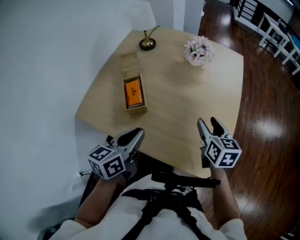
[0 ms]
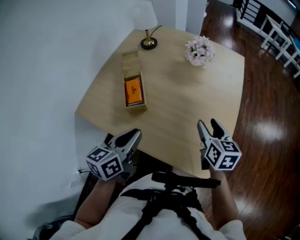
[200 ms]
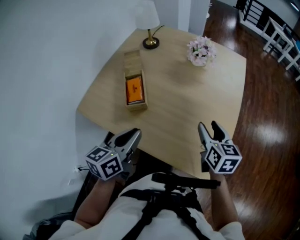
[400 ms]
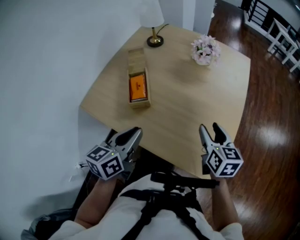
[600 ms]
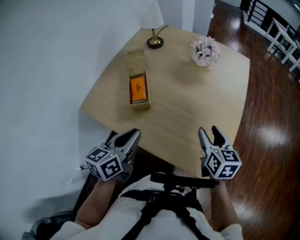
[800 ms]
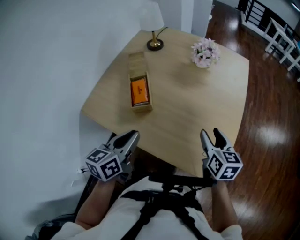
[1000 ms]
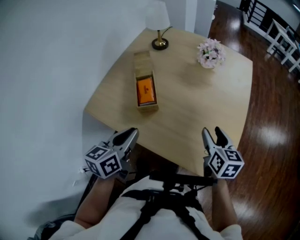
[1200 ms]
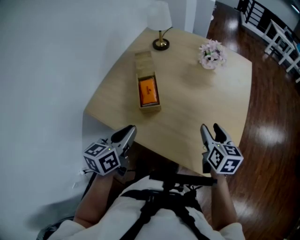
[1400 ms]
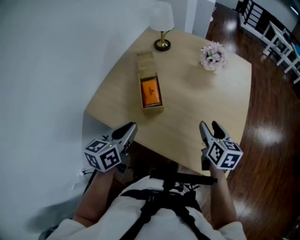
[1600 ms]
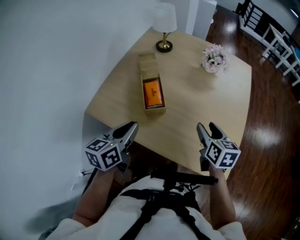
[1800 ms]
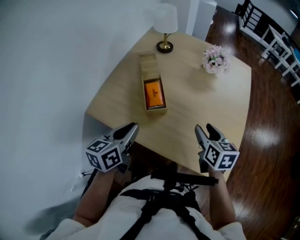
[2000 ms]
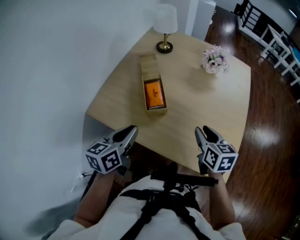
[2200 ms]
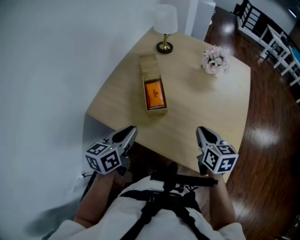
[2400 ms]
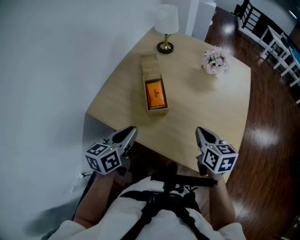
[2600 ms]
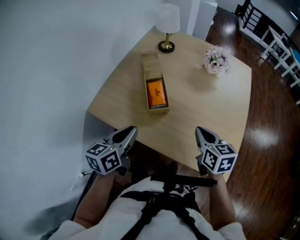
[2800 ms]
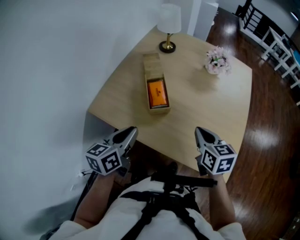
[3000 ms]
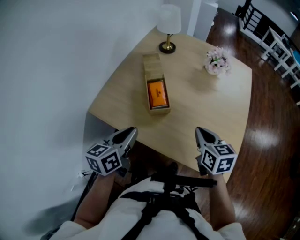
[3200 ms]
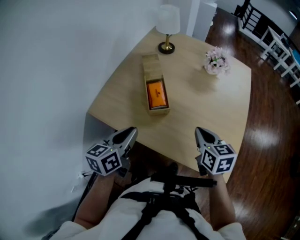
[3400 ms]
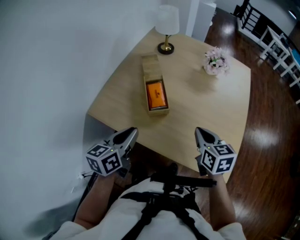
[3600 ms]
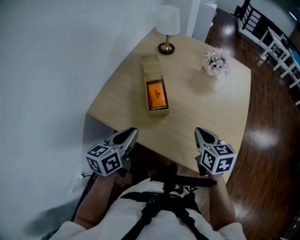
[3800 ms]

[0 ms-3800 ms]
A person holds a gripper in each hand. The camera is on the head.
0 ms to 1200 ms: The left gripper shifts some 5 cm to the left.
1200 ms to 2600 ms: Both grippers move to the left, about 10 cm. The right gripper closes.
2600 ms to 3800 ms: Both grippers stay put.

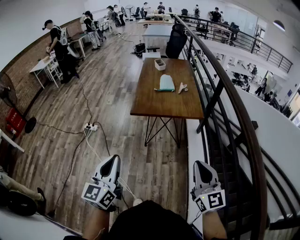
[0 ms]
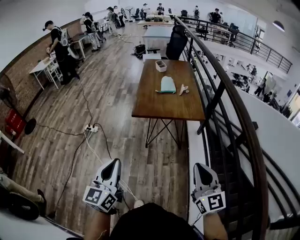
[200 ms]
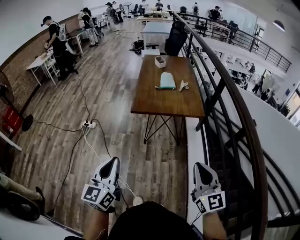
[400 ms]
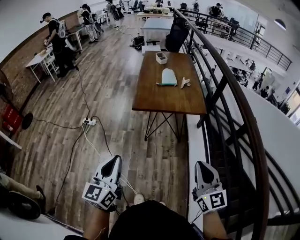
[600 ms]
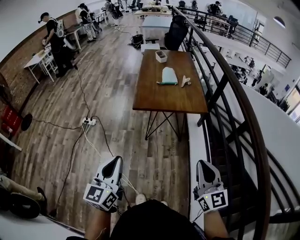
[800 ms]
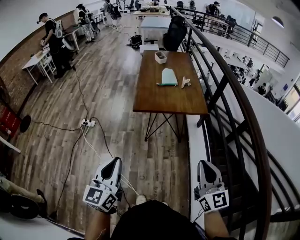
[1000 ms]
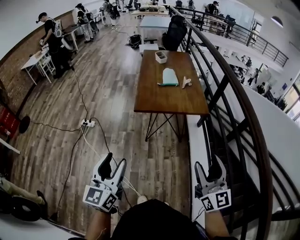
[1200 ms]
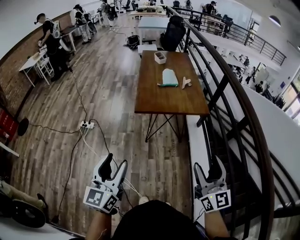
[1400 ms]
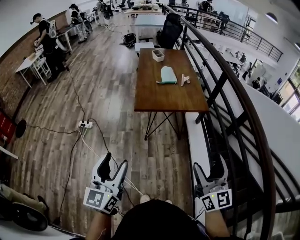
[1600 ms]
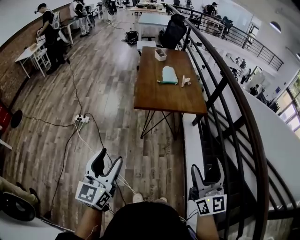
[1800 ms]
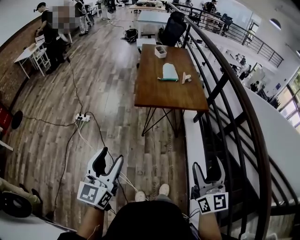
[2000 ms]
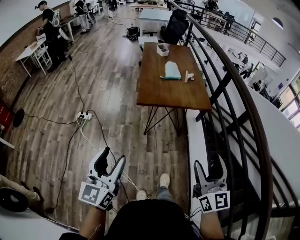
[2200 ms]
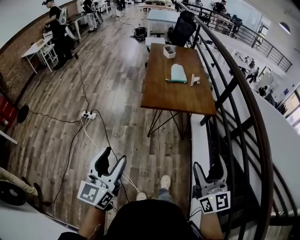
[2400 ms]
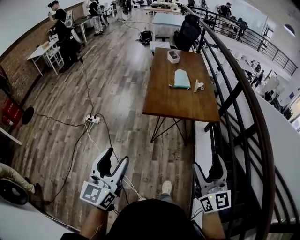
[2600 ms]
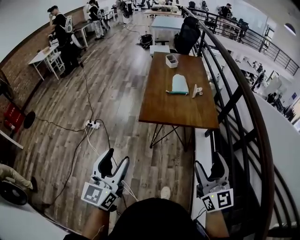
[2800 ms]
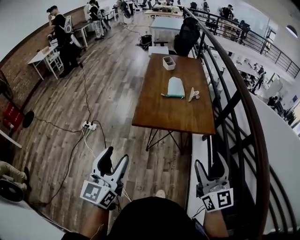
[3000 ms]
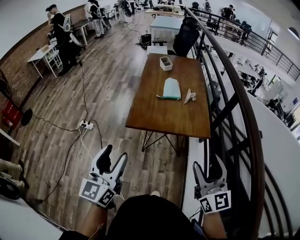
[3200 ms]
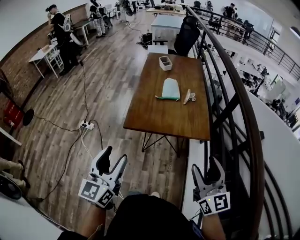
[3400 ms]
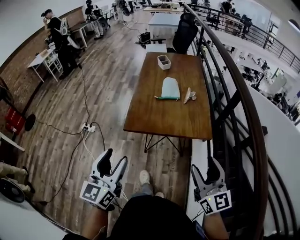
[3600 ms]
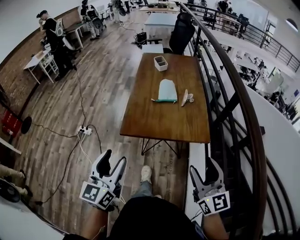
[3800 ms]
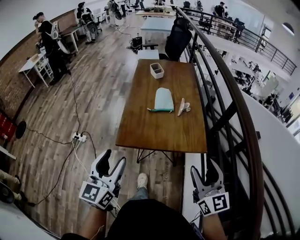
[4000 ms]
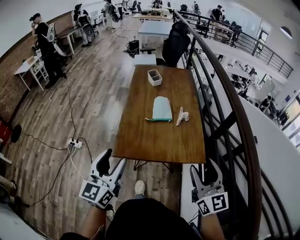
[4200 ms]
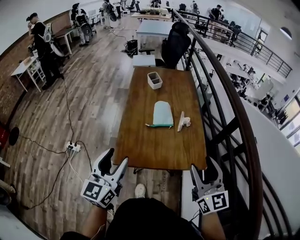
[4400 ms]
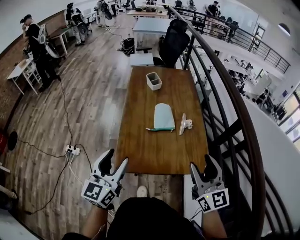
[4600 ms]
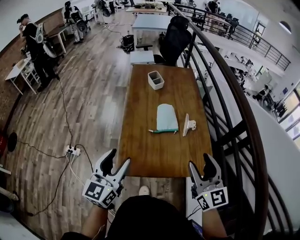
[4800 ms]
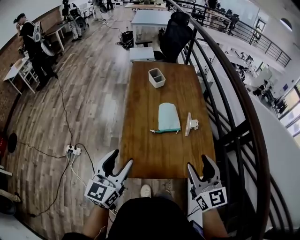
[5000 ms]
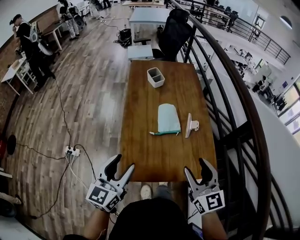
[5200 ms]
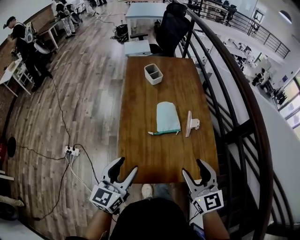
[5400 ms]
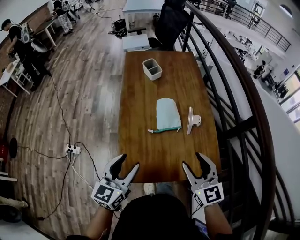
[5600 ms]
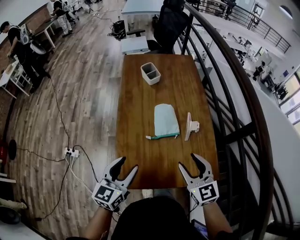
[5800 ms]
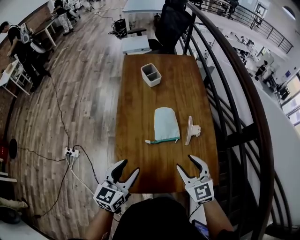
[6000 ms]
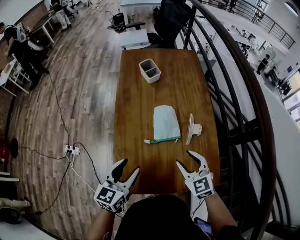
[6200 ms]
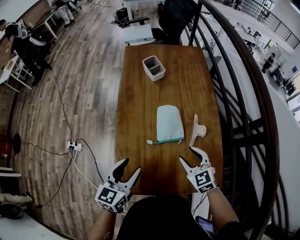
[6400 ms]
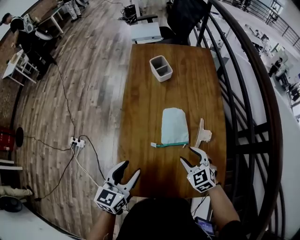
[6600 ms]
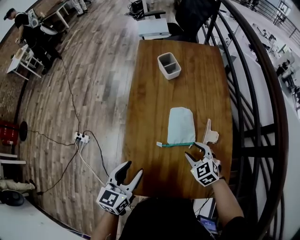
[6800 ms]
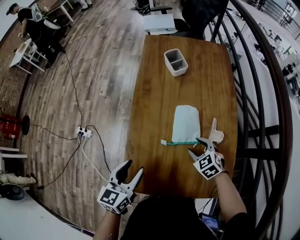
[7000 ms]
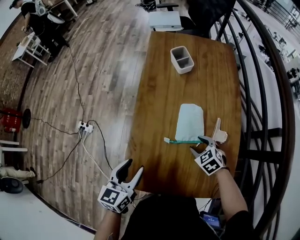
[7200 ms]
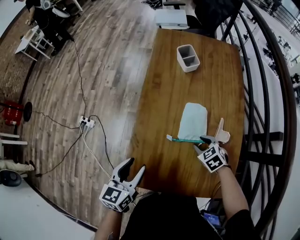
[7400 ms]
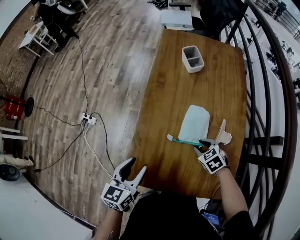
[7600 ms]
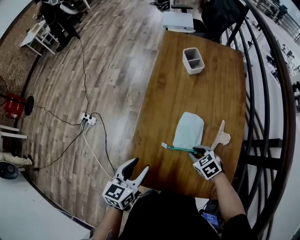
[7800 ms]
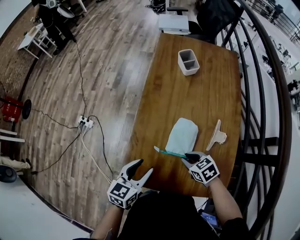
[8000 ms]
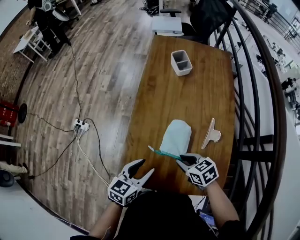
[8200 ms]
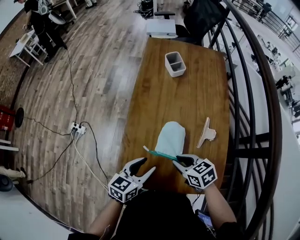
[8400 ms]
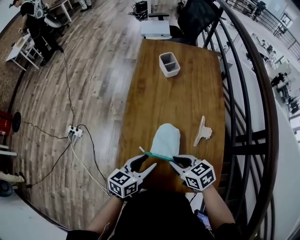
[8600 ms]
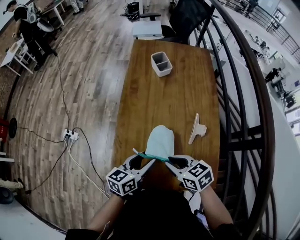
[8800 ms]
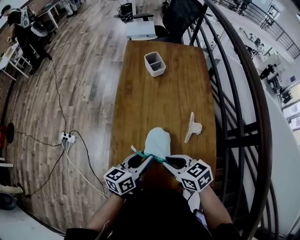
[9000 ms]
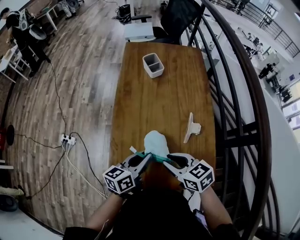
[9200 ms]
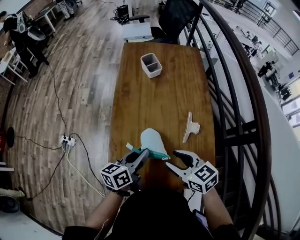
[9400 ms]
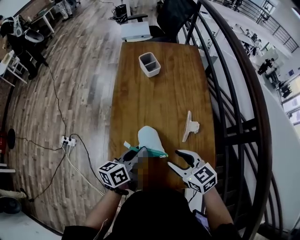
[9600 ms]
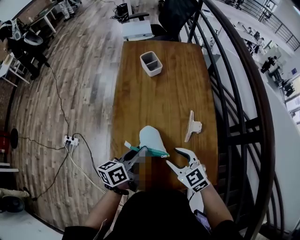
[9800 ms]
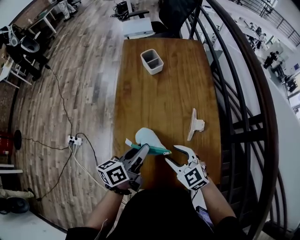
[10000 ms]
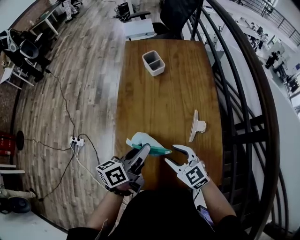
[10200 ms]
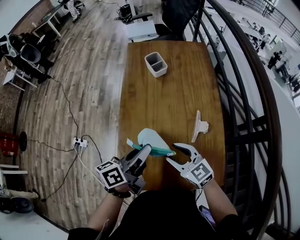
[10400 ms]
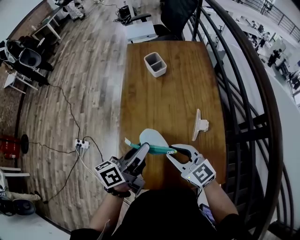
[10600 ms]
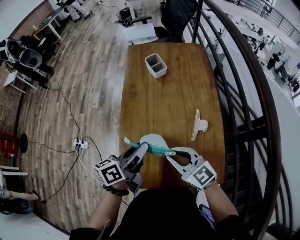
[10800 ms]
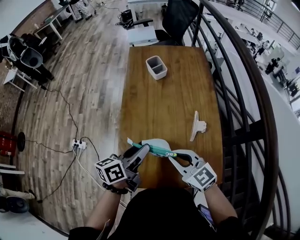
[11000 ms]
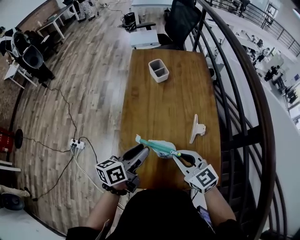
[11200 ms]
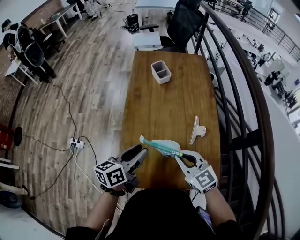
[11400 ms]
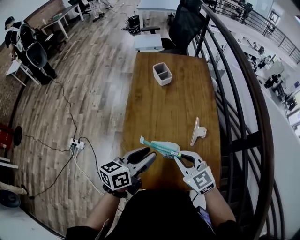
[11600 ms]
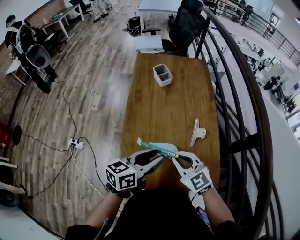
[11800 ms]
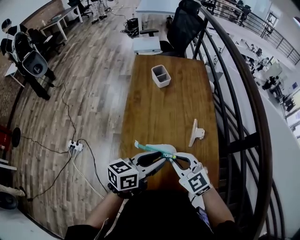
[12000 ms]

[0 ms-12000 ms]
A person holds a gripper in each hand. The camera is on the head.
0 ms to 1600 ms: The grippers both shift to the left by approximately 10 cm. The left gripper opens, while the right gripper opens.
1600 ms to 3000 ms: The right gripper travels forward by roughly 15 cm. The left gripper heads forward and to the right, covering roughly 15 cm.
3000 ms to 4400 ms: The grippers both shift forward by approximately 25 cm.
4400 ms to 6000 ms: The grippers both shift forward and downward by some 25 cm. The right gripper swivels about 30 degrees. The left gripper swivels roughly 20 degrees.
6000 ms to 7600 ms: The right gripper moves downward and forward, approximately 20 cm, and angles its fingers downward, by about 40 degrees. The left gripper shifts by about 5 cm, and turns by roughly 20 degrees.
7600 ms to 9000 ms: The left gripper shifts some 10 cm to the right, and turns by about 30 degrees; the right gripper travels upward, to the left and backward by approximately 20 cm, and turns by roughly 30 degrees.
9000 ms to 10400 ms: The left gripper shifts approximately 5 cm upward, and closes its fingers. Meanwhile the right gripper swivels approximately 30 degrees, and opens its fingers.
10400 ms to 12000 ms: The right gripper moves about 5 cm, and closes up; the left gripper heads backward, covering some 5 cm, and changes its angle by roughly 30 degrees.

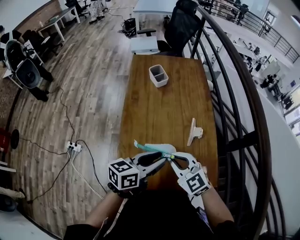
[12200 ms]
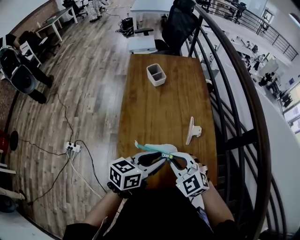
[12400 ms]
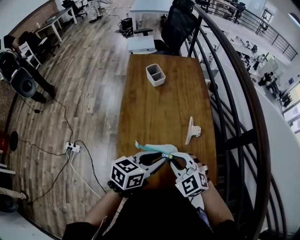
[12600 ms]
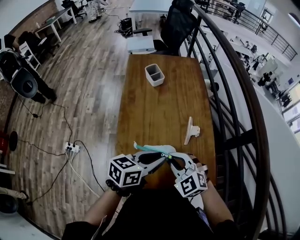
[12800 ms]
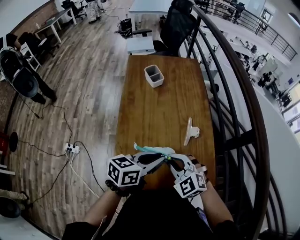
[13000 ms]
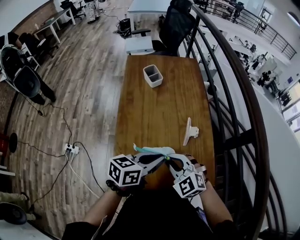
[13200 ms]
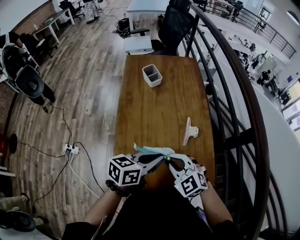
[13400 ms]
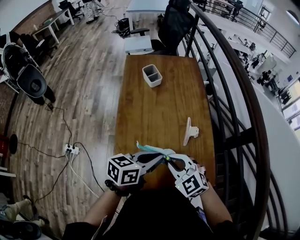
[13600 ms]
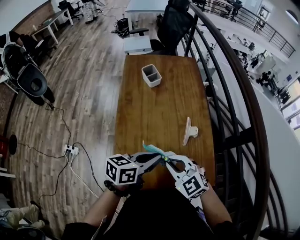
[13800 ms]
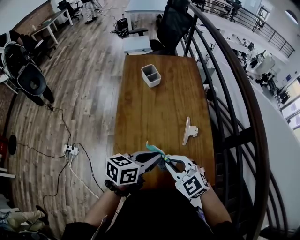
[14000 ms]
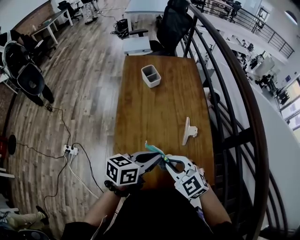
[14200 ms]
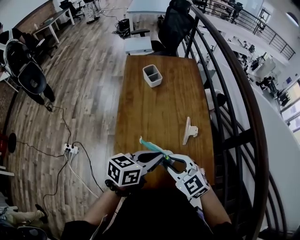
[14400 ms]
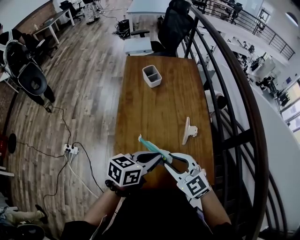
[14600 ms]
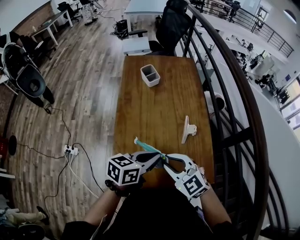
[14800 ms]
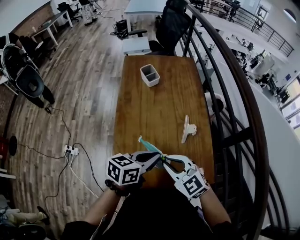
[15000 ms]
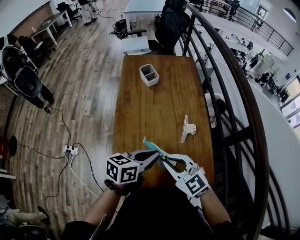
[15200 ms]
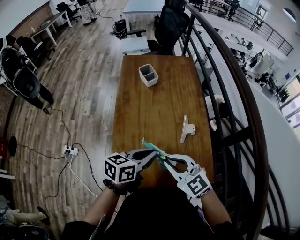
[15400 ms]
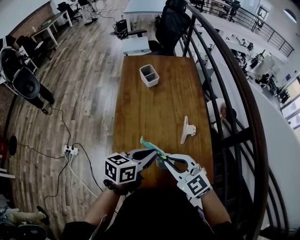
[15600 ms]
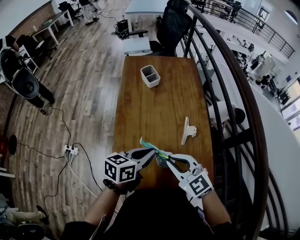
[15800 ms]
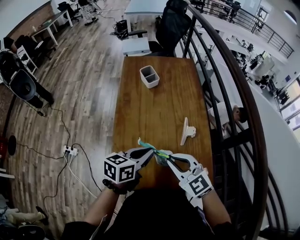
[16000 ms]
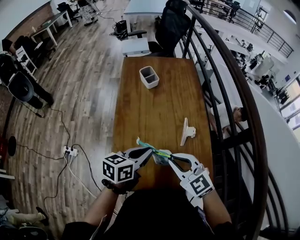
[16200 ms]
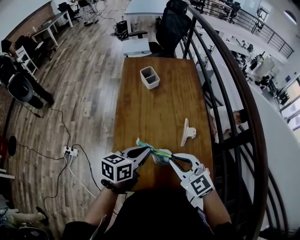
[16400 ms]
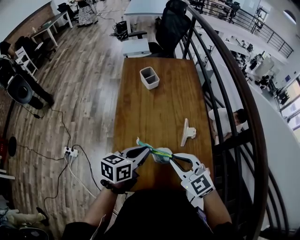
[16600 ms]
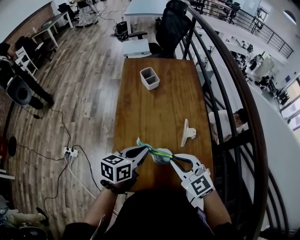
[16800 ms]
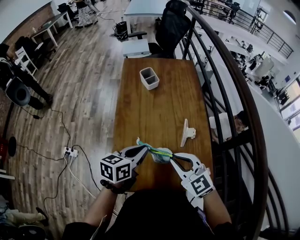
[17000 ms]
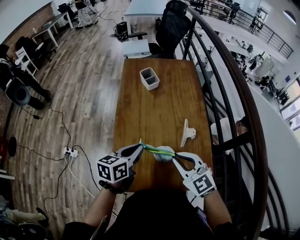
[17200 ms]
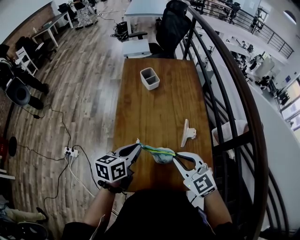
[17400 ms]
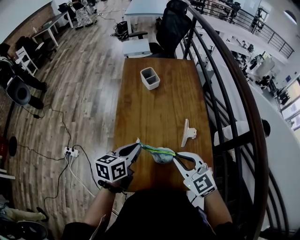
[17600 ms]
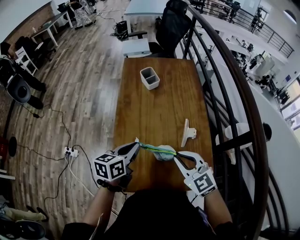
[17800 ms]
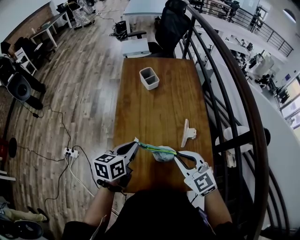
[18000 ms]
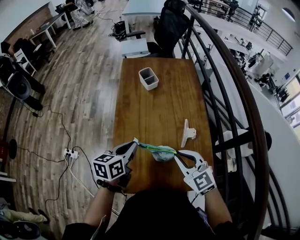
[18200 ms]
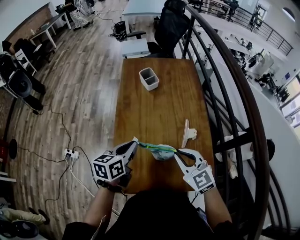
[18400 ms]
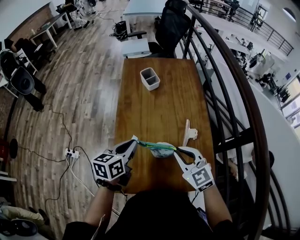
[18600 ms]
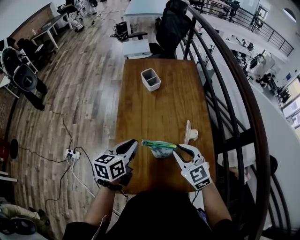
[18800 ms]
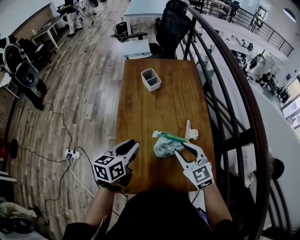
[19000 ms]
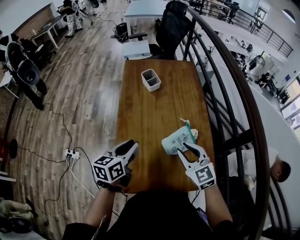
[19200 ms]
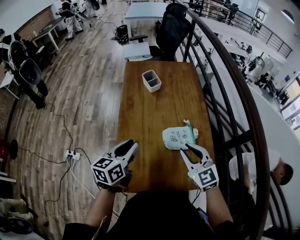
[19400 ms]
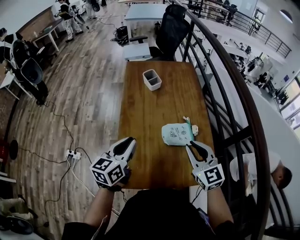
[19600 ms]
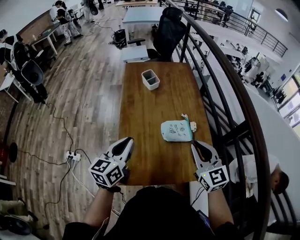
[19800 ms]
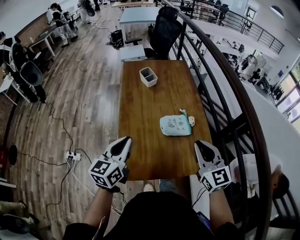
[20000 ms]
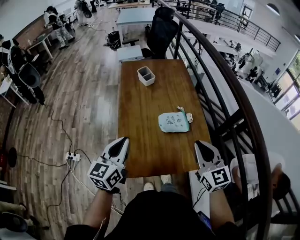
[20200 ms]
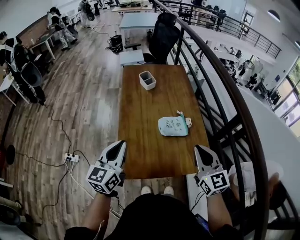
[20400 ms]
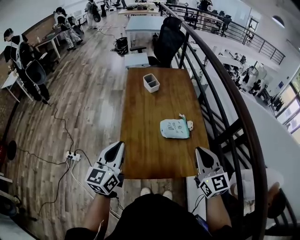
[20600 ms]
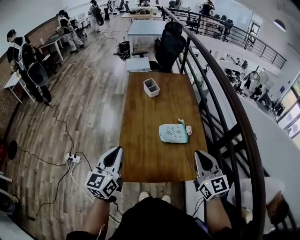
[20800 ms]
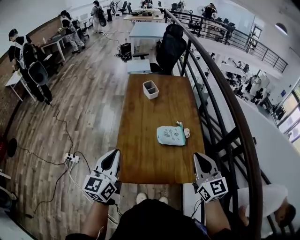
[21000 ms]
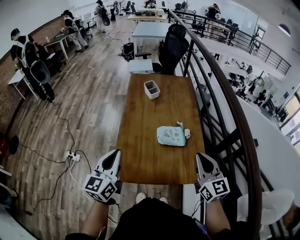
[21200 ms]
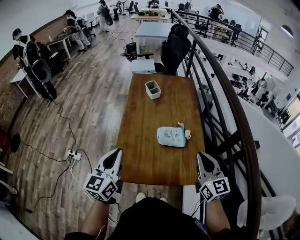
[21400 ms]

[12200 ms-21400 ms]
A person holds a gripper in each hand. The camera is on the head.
12200 ms to 13800 ms: The left gripper closes.
13800 ms to 15200 ms: The grippers make only small movements.
15200 ms to 16800 ms: The left gripper ends up about 5 cm from where it was.
16800 ms to 18400 ms: The left gripper heads to the left, covering some 5 cm.
18400 ms to 19800 ms: The left gripper goes roughly 10 cm upward and backward. Meanwhile the right gripper heads upward, covering about 5 cm, and rotates about 20 degrees.
19800 ms to 21400 ms: The right gripper moves to the right and backward, about 10 cm; the left gripper heads backward and upward, covering about 10 cm.
